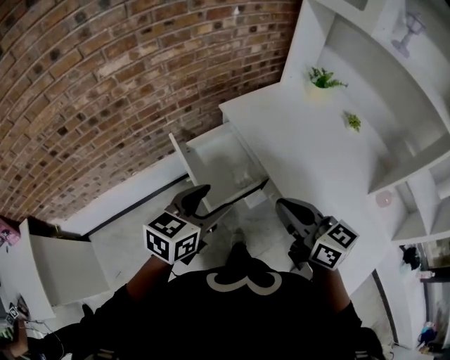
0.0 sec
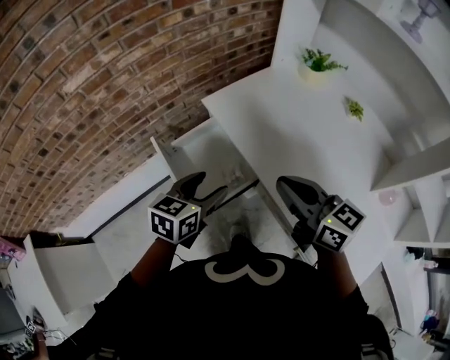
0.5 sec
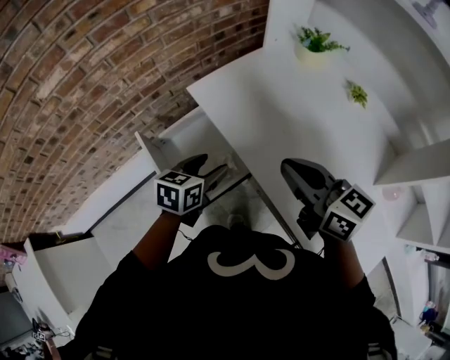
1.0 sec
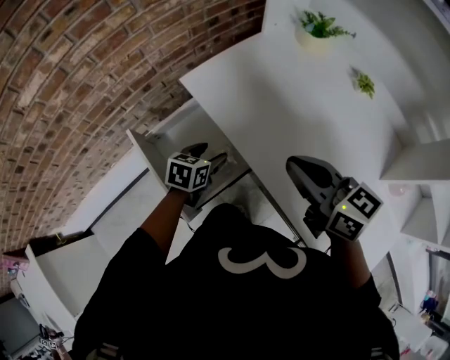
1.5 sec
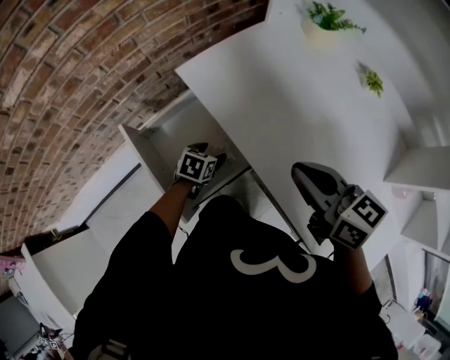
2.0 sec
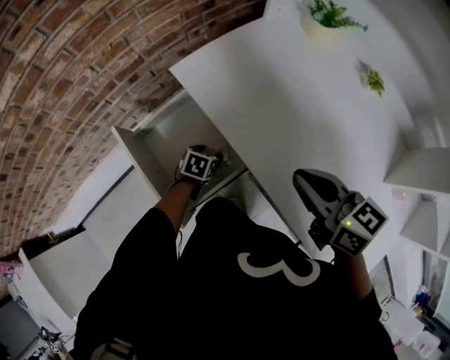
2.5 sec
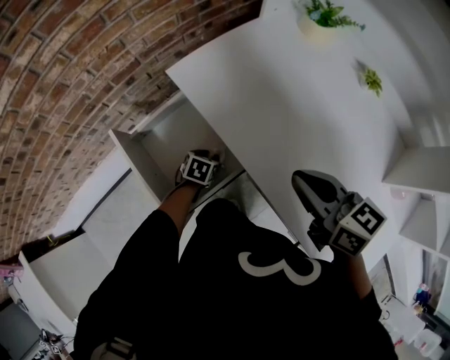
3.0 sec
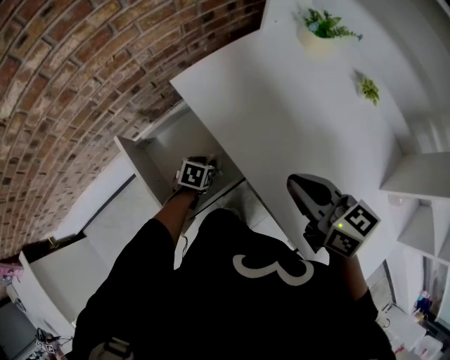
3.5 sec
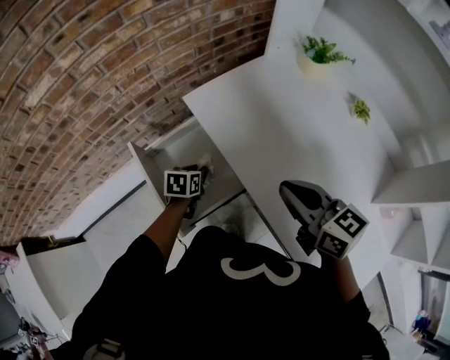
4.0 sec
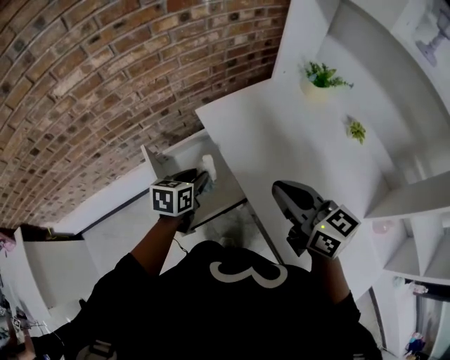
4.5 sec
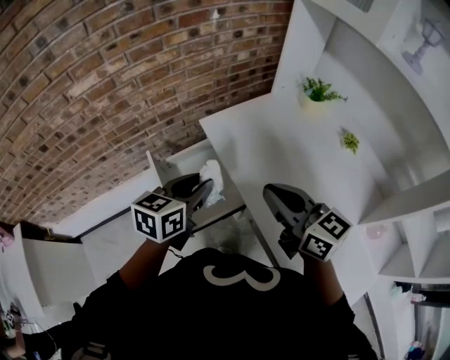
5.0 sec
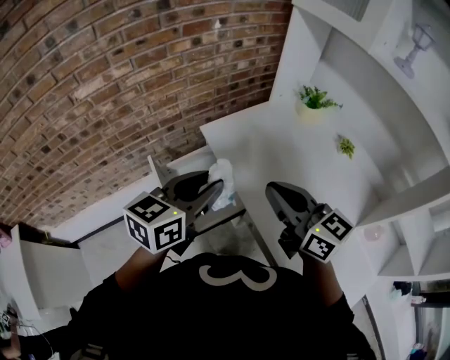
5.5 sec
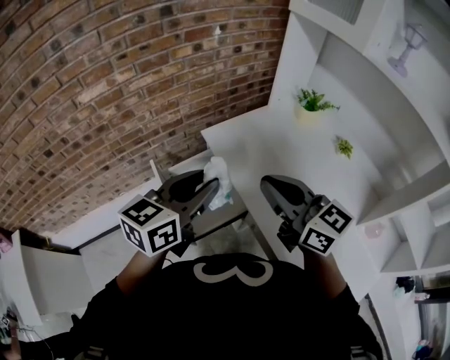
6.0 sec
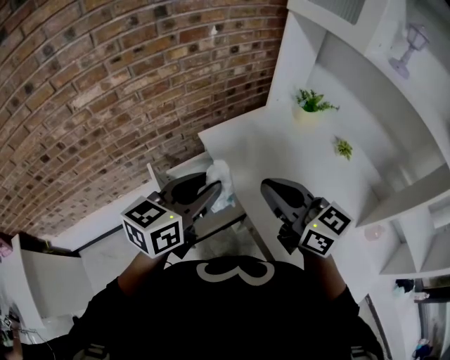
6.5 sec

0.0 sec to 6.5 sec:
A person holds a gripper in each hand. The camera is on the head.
0.0 sec to 2.0 sec: The right gripper goes roughly 20 cm forward, to the right and downward. Meanwhile the left gripper heads downward and forward, covering about 40 cm, and tips its fingers downward by approximately 30 degrees.
2.0 sec to 4.5 sec: The right gripper shifts approximately 5 cm upward. The left gripper heads upward, covering approximately 20 cm, turns by approximately 30 degrees, and closes.
4.5 sec to 6.5 sec: The right gripper heads upward, covering roughly 10 cm. Meanwhile the left gripper shifts some 25 cm upward, and turns by about 30 degrees.

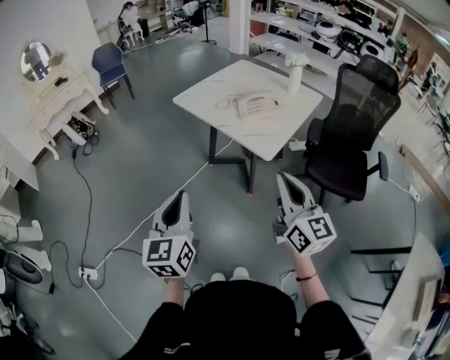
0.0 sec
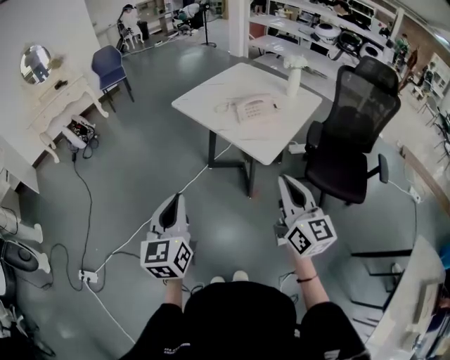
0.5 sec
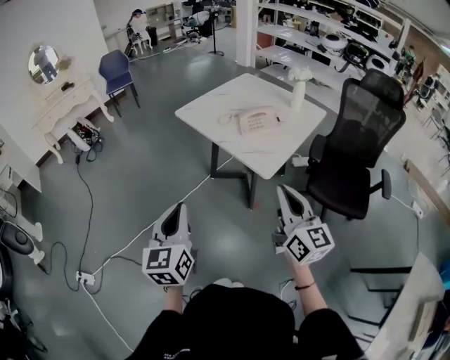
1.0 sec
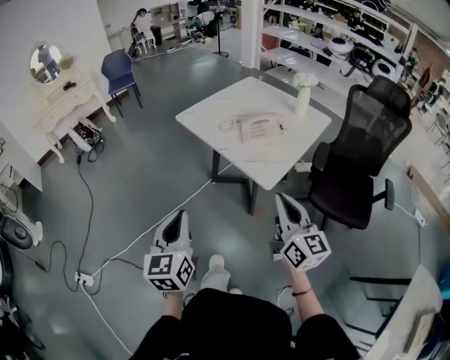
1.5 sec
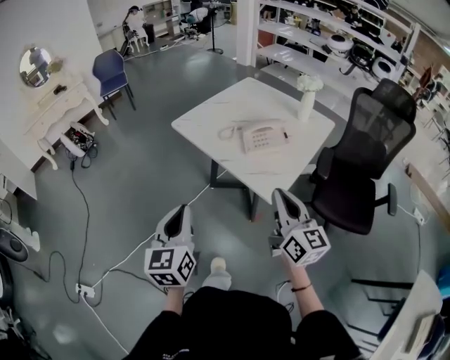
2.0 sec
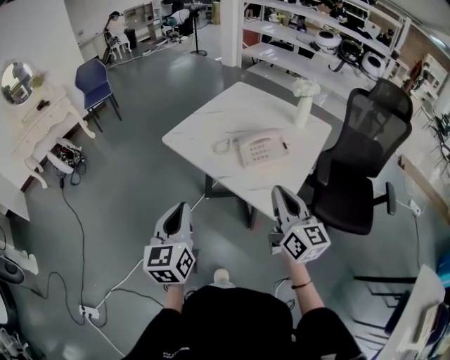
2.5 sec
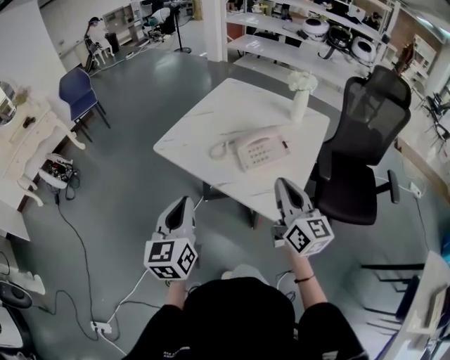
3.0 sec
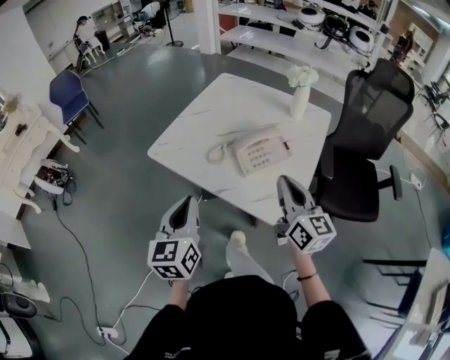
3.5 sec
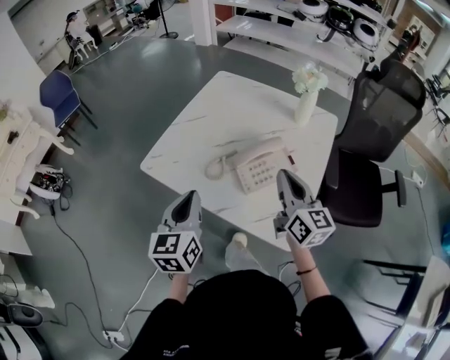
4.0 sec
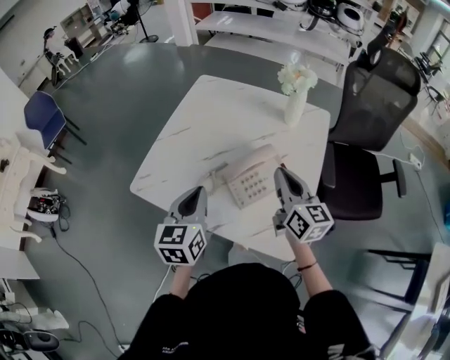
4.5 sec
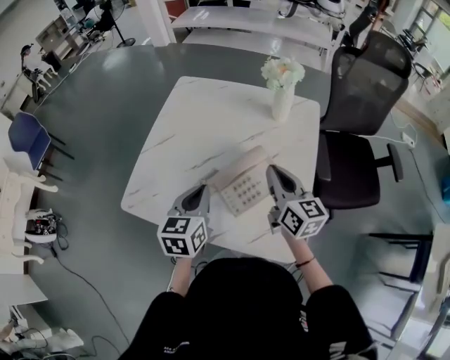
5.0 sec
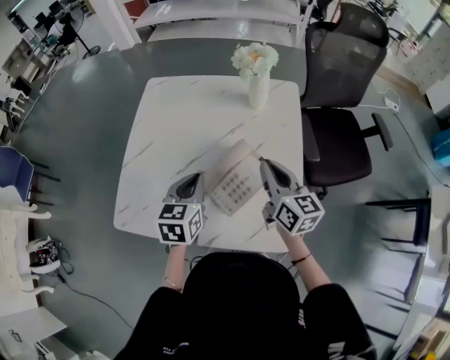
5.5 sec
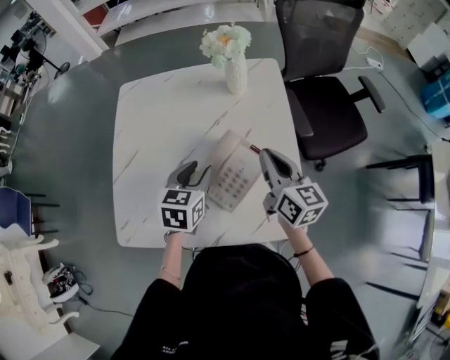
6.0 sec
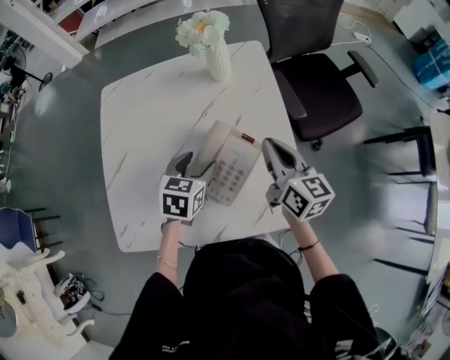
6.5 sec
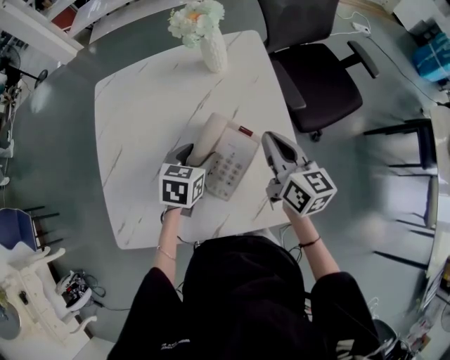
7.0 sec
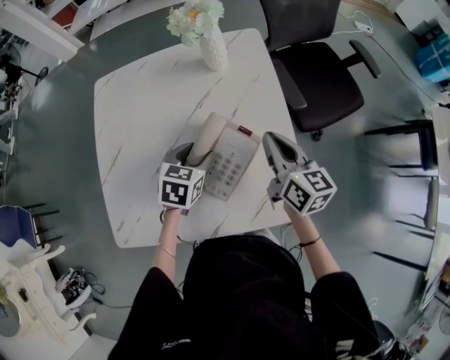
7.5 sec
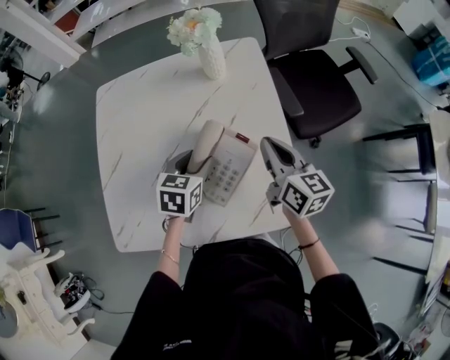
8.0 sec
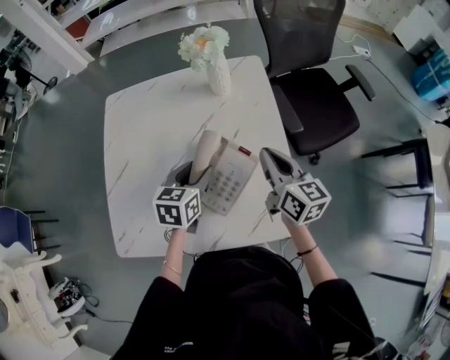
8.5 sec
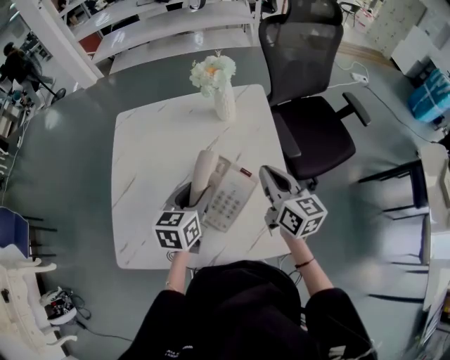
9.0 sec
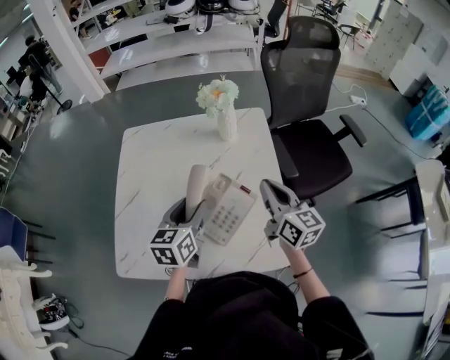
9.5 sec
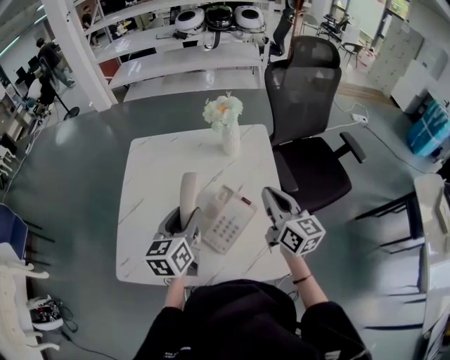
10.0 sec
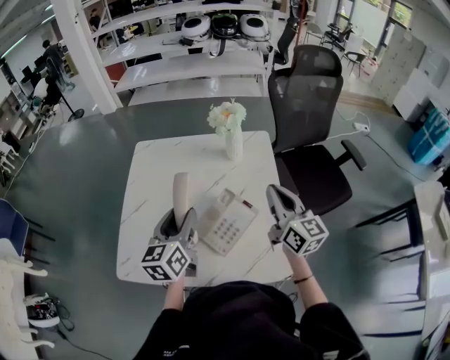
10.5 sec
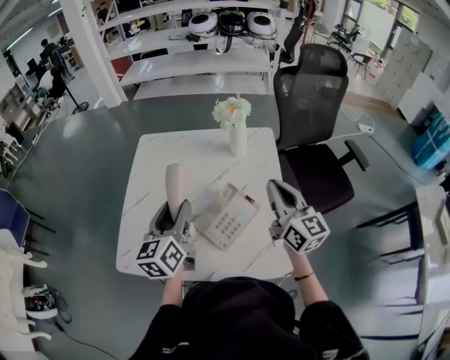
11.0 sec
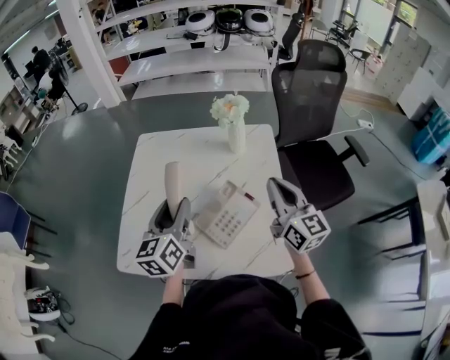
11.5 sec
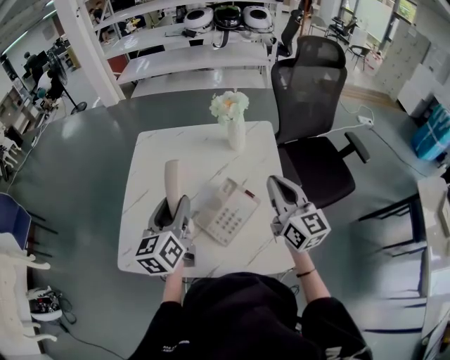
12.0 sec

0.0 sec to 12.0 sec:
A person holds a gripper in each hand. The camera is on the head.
0.0 sec to 2.0 sec: Both grippers travel together forward, approximately 20 cm.
2.0 sec to 4.0 sec: The two grippers go about 35 cm forward.
4.0 sec to 6.0 sec: The left gripper ends up about 30 cm from where it was, changes its angle by roughly 50 degrees, and opens its fingers, while the right gripper shifts by about 15 cm, and turns by approximately 30 degrees.
6.0 sec to 8.0 sec: The left gripper ends up roughly 5 cm from where it was.
8.0 sec to 10.0 sec: The right gripper travels upward by roughly 10 cm. The left gripper travels upward and to the left by approximately 15 cm, and changes its angle by roughly 30 degrees.
10.0 sec to 12.0 sec: The left gripper ends up roughly 5 cm from where it was.

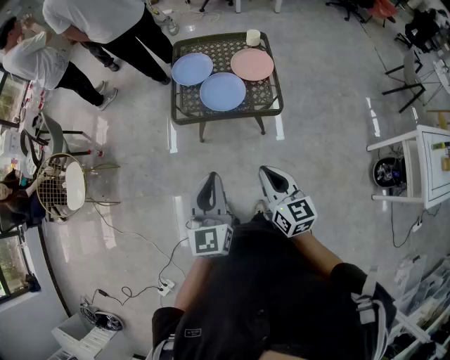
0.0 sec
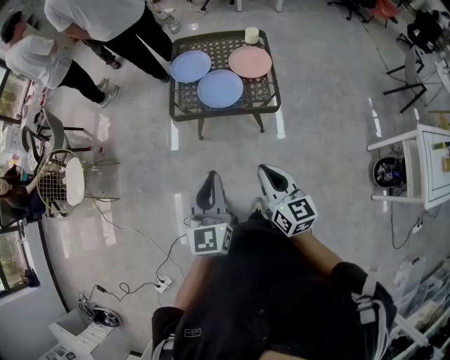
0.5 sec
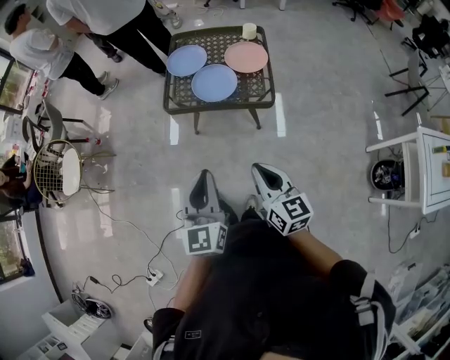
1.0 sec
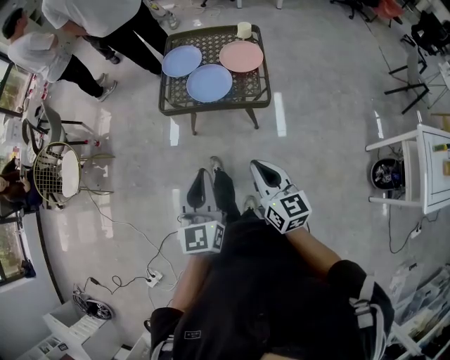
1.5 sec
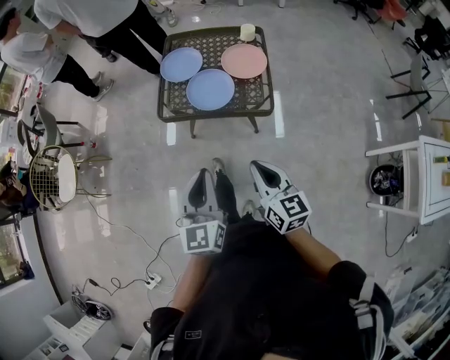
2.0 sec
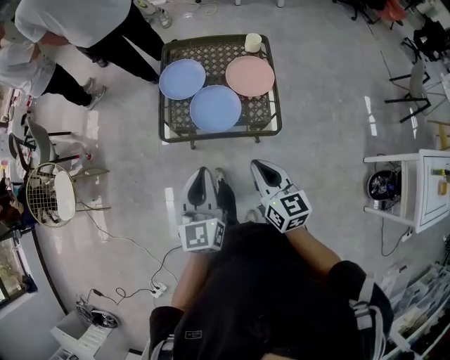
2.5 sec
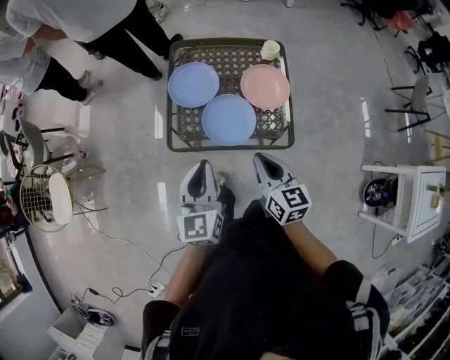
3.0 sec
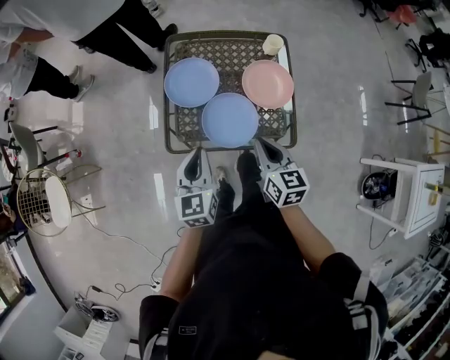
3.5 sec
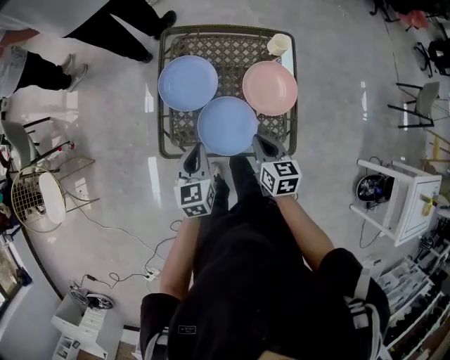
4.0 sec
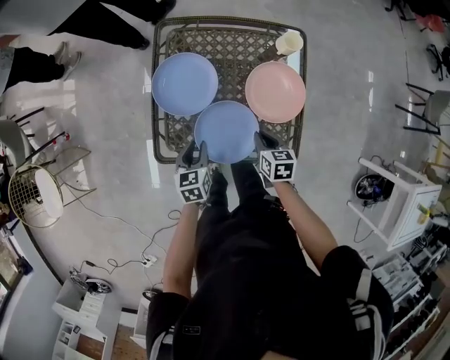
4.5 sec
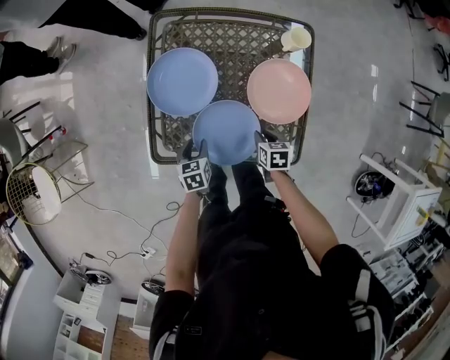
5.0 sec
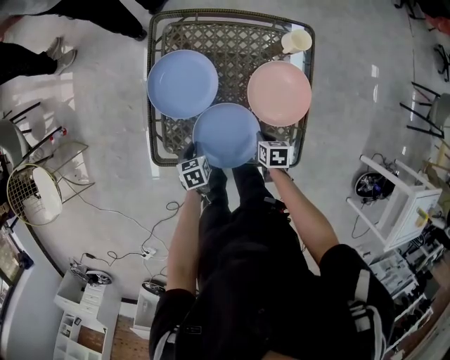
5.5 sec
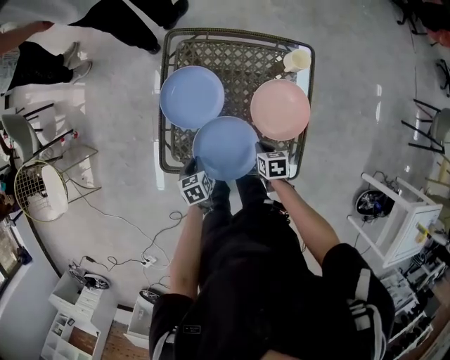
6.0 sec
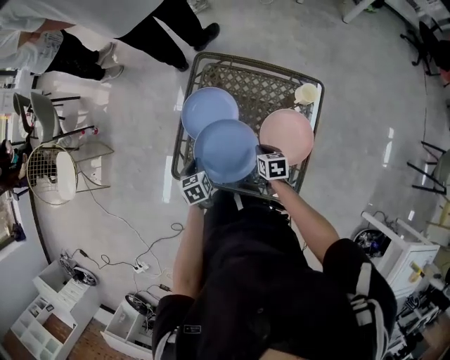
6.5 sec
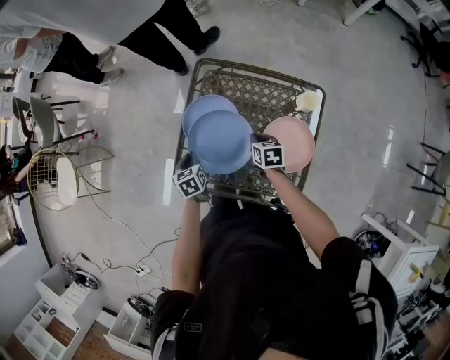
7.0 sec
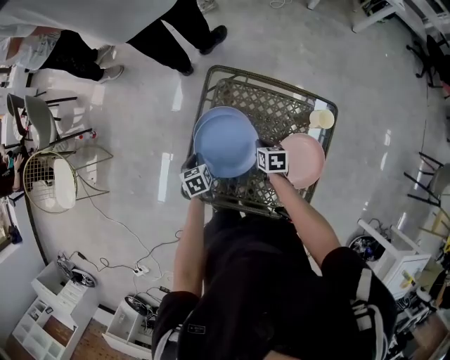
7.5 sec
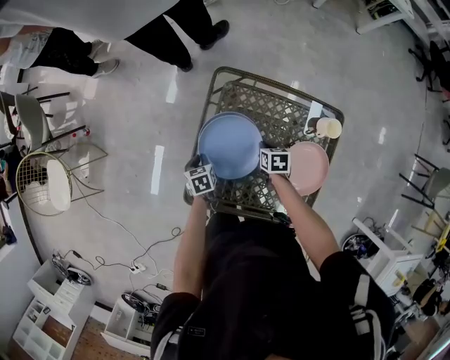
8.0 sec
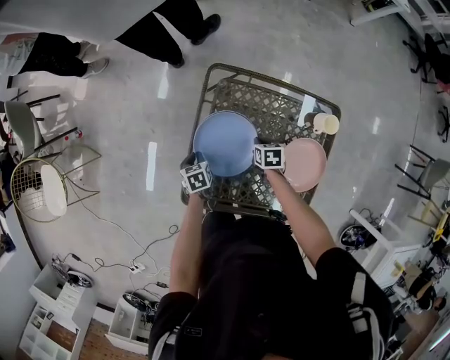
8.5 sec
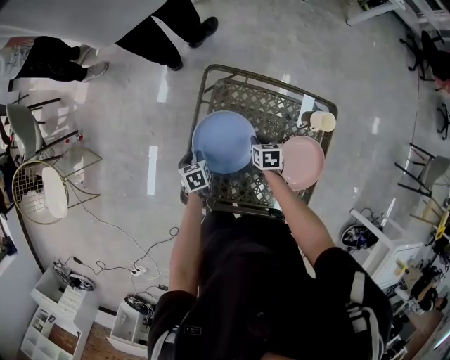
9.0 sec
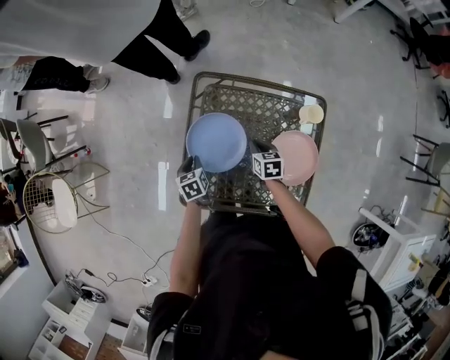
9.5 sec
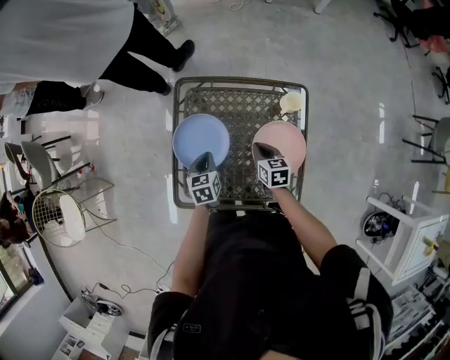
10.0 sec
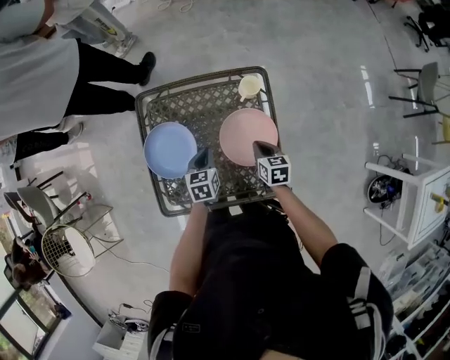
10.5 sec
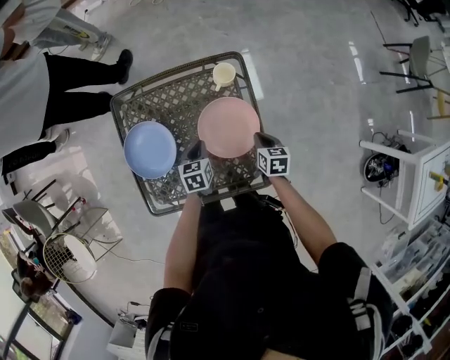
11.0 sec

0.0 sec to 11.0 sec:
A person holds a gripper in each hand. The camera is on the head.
0.0 sec to 2.0 sec: Both grippers move to the right, about 5 cm.
2.0 sec to 3.5 sec: Both grippers move forward, some 35 cm.
3.5 sec to 5.5 sec: The two grippers go about 30 cm downward. The left gripper points its fingers roughly 40 degrees further downward, and opens and closes again, while the right gripper angles its fingers downward, by about 40 degrees.
5.5 sec to 7.5 sec: The right gripper heads forward, covering roughly 25 cm. The left gripper goes about 20 cm forward and upward.
7.5 sec to 9.0 sec: The right gripper shifts by about 5 cm, while the left gripper is displaced downward by roughly 5 cm.
9.0 sec to 11.0 sec: The left gripper moves about 35 cm, and rotates about 40 degrees. Meanwhile the right gripper ends up roughly 35 cm from where it was, and rotates roughly 30 degrees.
